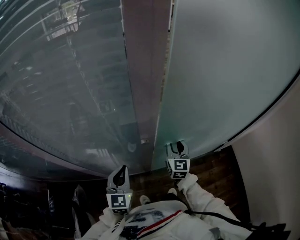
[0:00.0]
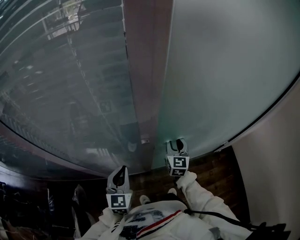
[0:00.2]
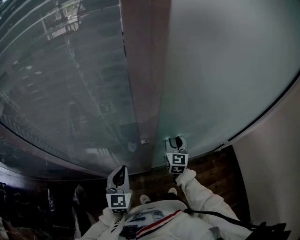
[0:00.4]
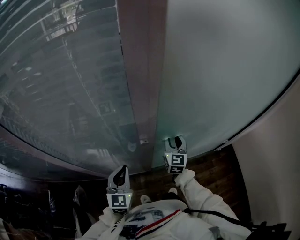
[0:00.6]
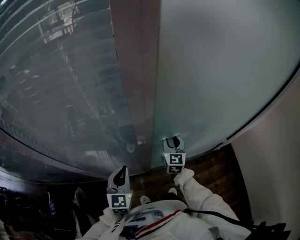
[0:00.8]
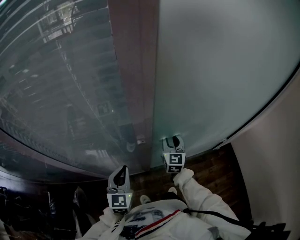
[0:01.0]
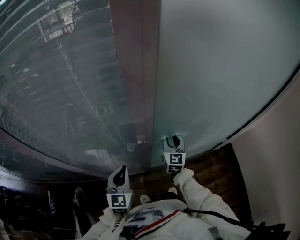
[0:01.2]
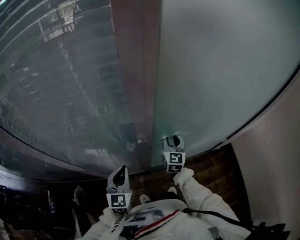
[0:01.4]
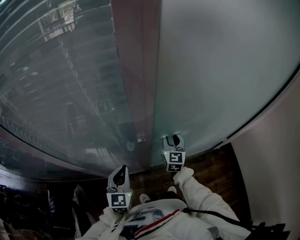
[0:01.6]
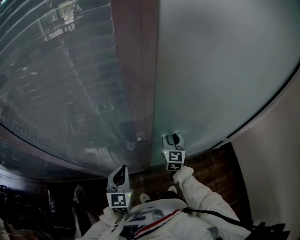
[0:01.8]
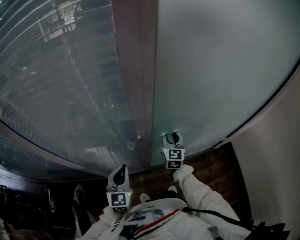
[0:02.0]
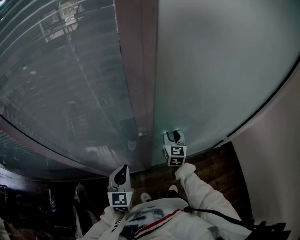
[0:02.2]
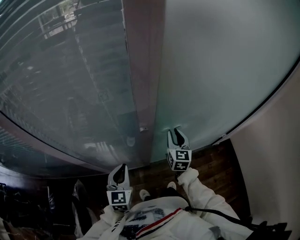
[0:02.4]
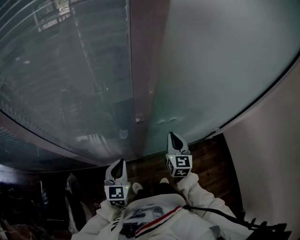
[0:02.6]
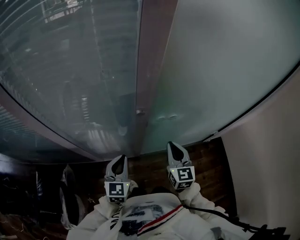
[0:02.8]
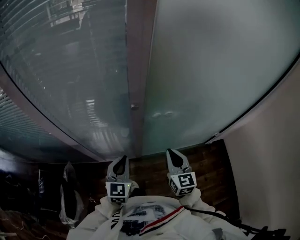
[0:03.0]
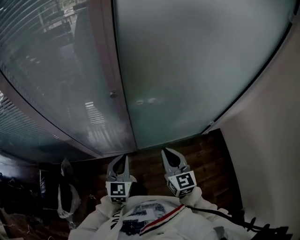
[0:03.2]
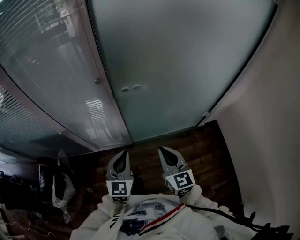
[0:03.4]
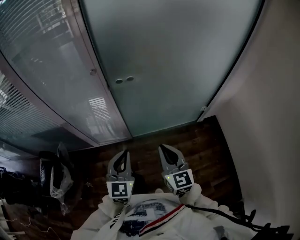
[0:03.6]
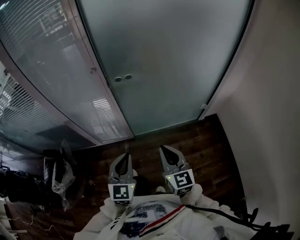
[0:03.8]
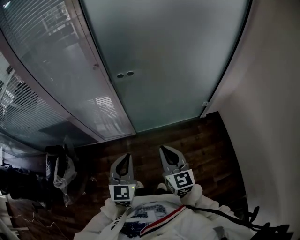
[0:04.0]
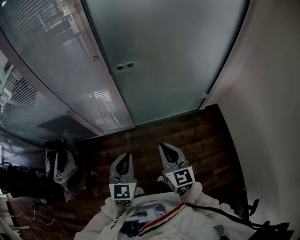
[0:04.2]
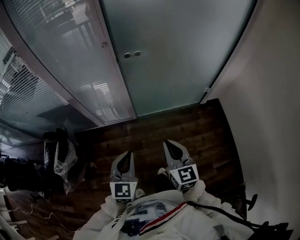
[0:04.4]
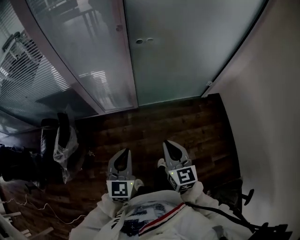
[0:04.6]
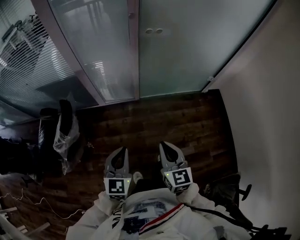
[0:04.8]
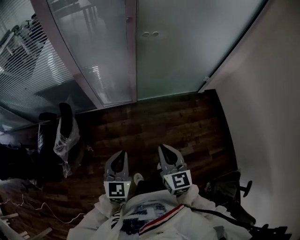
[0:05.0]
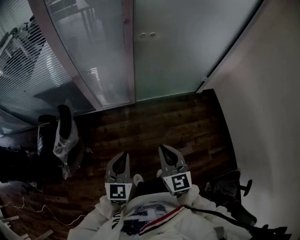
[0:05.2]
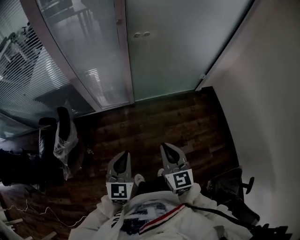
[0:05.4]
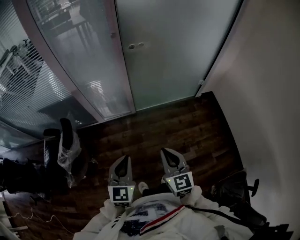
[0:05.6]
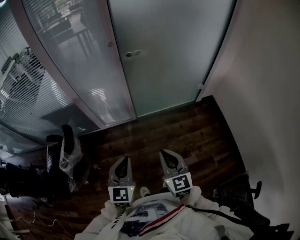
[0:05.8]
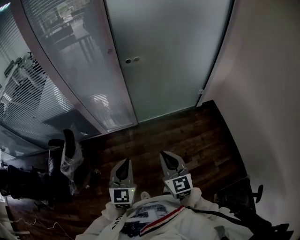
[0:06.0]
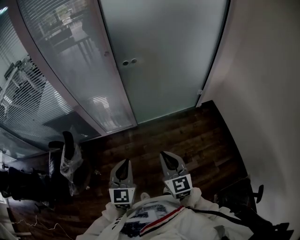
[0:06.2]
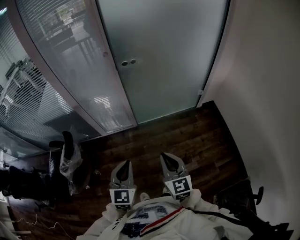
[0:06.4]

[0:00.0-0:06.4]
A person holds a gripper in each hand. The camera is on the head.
0:00.0 to 0:01.6: The grippers make only small movements.
0:01.6 to 0:03.2: The left gripper shifts some 15 cm backward and to the right. Meanwhile the right gripper shifts roughly 25 cm backward, and closes its fingers.
0:03.2 to 0:04.8: The two grippers go approximately 35 cm backward.
0:04.8 to 0:06.4: Both grippers move to the right, roughly 10 cm.

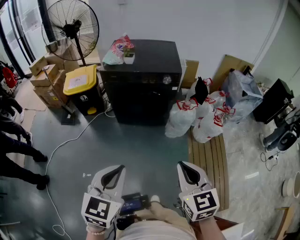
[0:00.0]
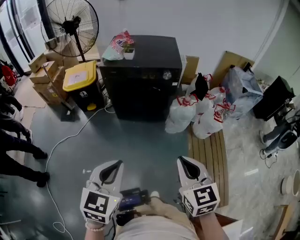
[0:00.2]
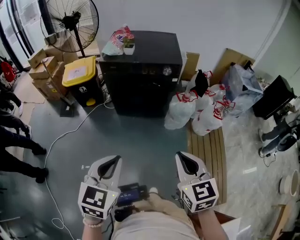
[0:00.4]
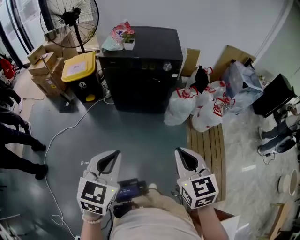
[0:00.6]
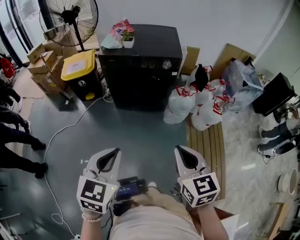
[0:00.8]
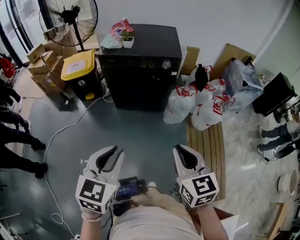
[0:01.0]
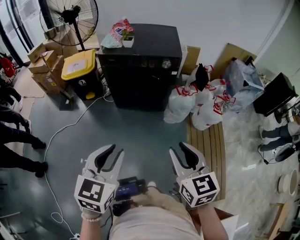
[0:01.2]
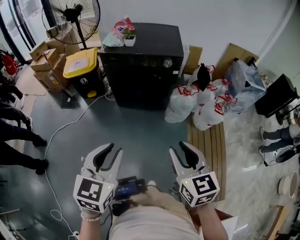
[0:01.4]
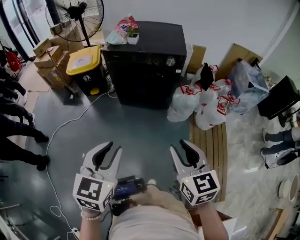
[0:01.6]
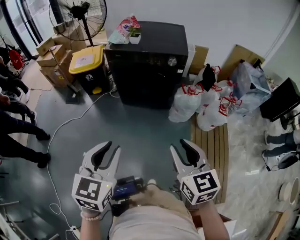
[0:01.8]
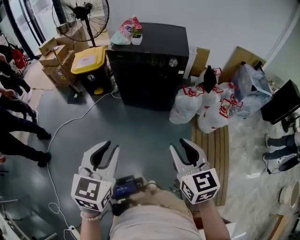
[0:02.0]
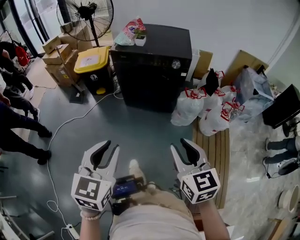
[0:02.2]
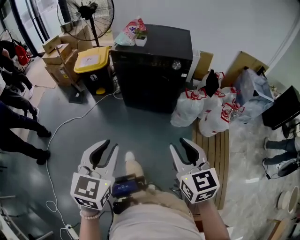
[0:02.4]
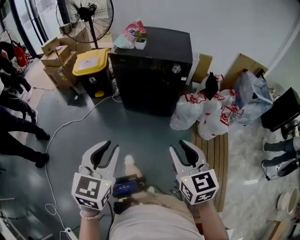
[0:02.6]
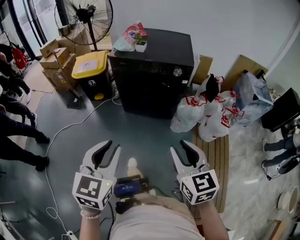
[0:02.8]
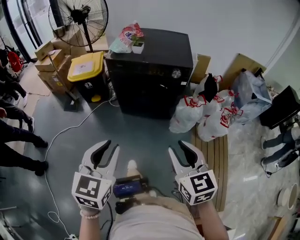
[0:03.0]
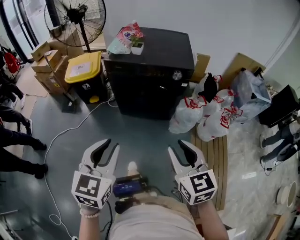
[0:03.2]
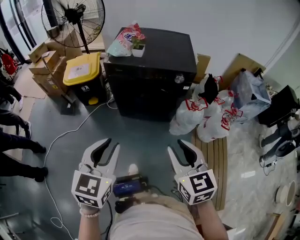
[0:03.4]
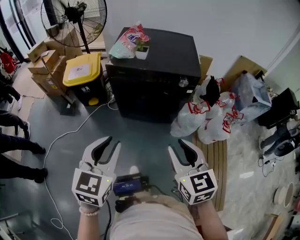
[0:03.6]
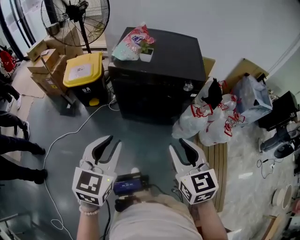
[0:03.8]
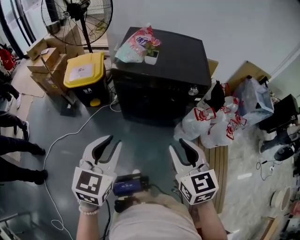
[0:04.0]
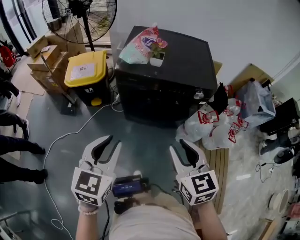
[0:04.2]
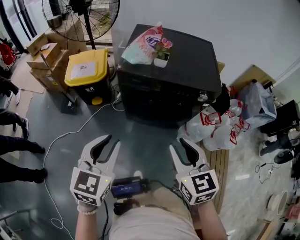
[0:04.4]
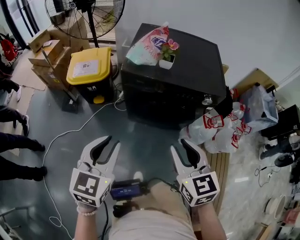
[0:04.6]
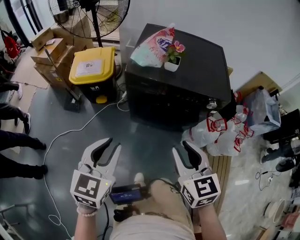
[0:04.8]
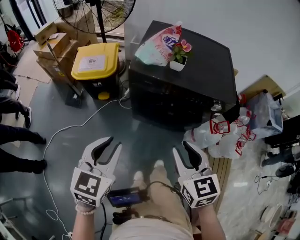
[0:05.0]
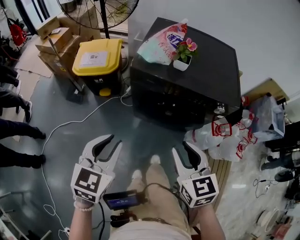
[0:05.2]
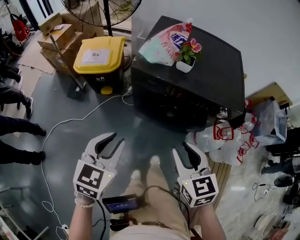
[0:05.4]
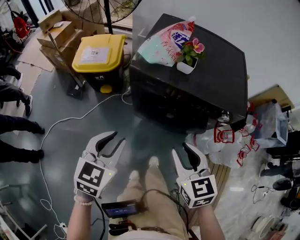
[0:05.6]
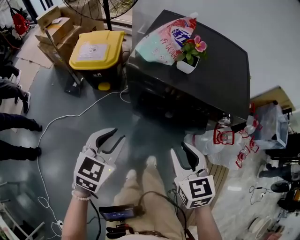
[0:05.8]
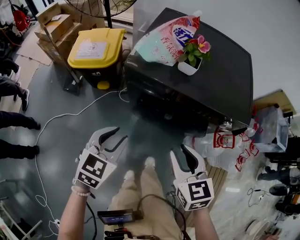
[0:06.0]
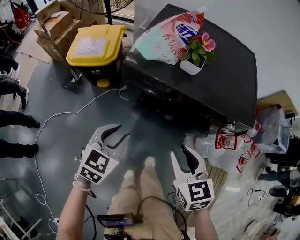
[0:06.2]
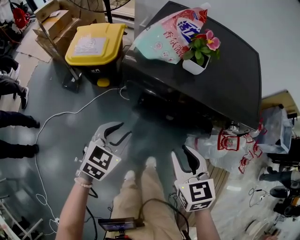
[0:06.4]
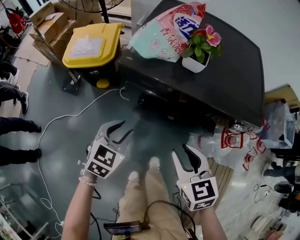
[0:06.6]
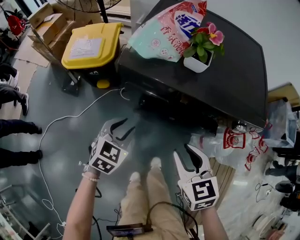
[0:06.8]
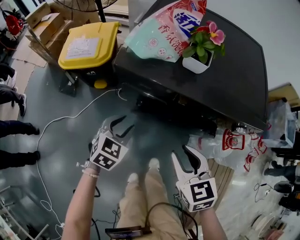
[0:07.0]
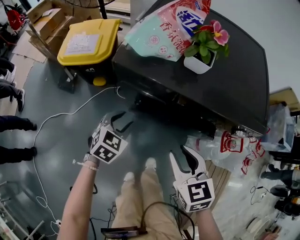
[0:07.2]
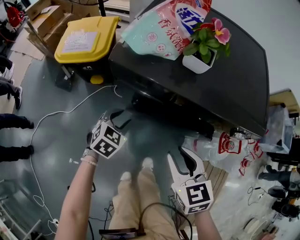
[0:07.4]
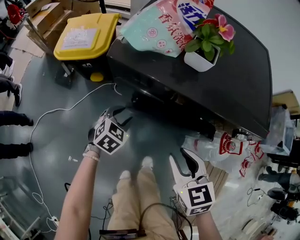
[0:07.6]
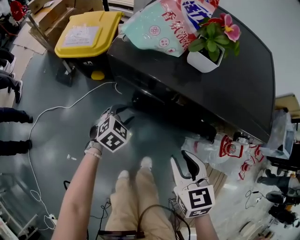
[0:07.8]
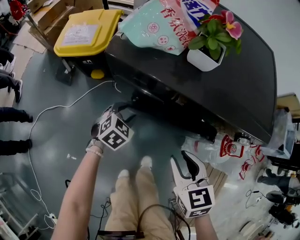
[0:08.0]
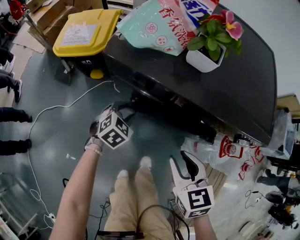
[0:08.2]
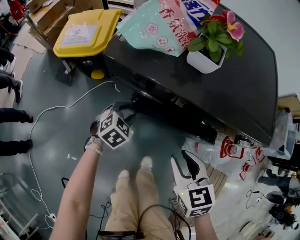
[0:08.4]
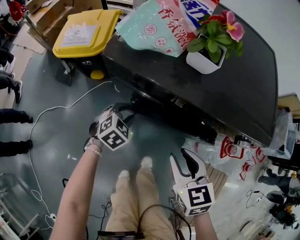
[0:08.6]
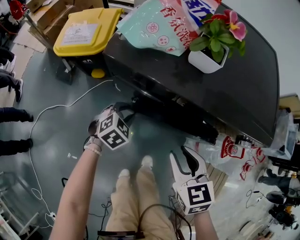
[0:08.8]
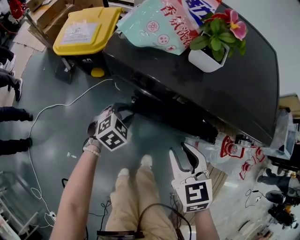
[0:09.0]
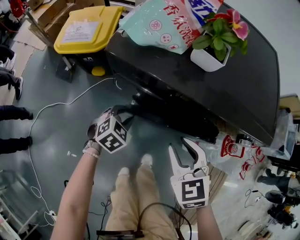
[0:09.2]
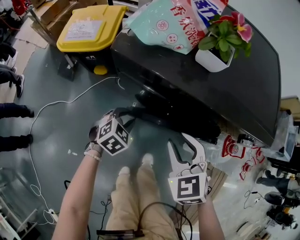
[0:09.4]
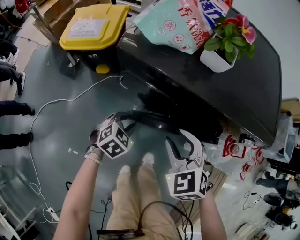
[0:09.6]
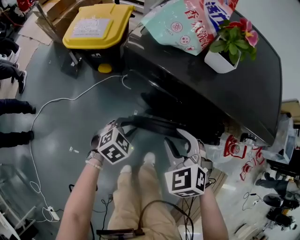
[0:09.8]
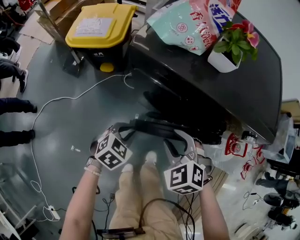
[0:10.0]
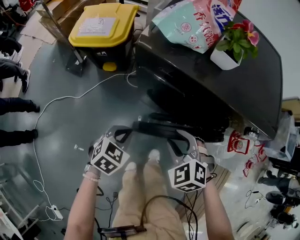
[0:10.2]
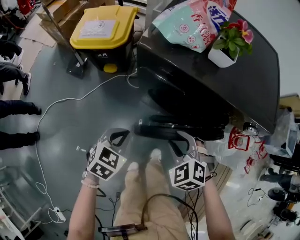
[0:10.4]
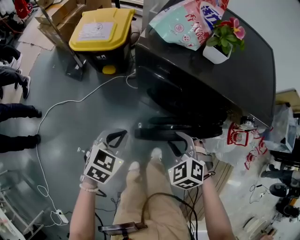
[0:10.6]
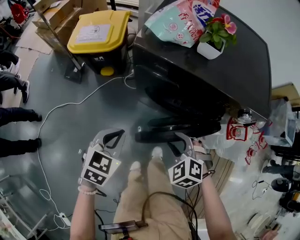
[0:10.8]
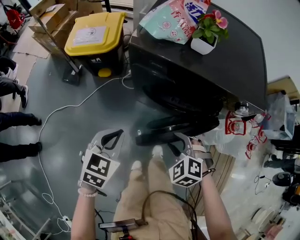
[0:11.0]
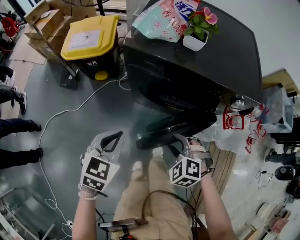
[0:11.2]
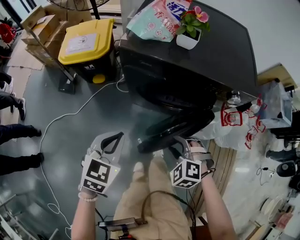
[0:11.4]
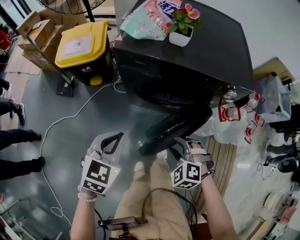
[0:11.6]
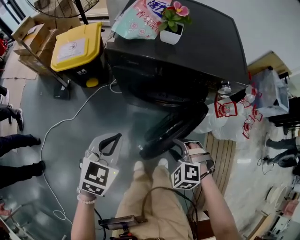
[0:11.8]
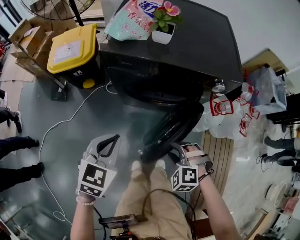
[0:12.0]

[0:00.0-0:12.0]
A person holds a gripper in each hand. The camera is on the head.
0:00.0 to 0:01.6: The right gripper opens. Meanwhile the left gripper opens.
0:01.6 to 0:03.0: Both grippers move forward, roughly 10 cm.
0:03.0 to 0:04.4: The two grippers go about 25 cm forward and to the left.
0:04.4 to 0:06.0: The left gripper shifts roughly 20 cm downward and forward. Meanwhile the right gripper heads forward and downward, covering about 20 cm.
0:06.0 to 0:07.6: The left gripper heads downward and forward, covering some 25 cm, while the right gripper is displaced downward by some 10 cm.
0:07.6 to 0:09.0: There are only small adjustments of the grippers.
0:09.0 to 0:10.4: The right gripper moves to the left, roughly 5 cm, and turns by roughly 40 degrees, while the left gripper moves backward and upward, some 15 cm, and closes.
0:10.4 to 0:12.0: The right gripper travels backward and to the right by some 15 cm. The left gripper moves upward, some 15 cm.

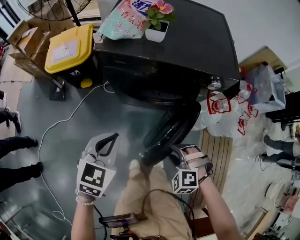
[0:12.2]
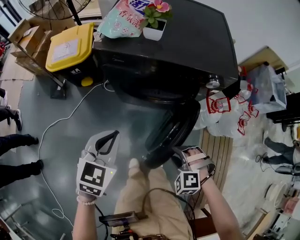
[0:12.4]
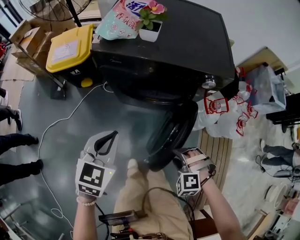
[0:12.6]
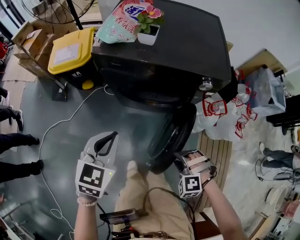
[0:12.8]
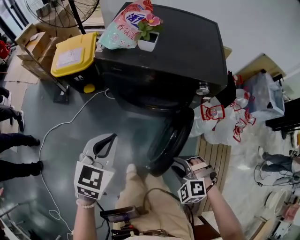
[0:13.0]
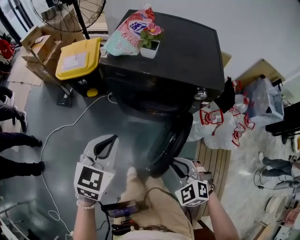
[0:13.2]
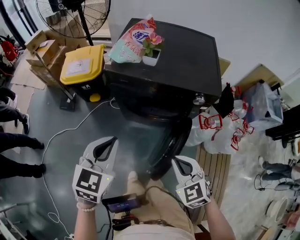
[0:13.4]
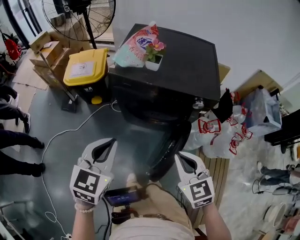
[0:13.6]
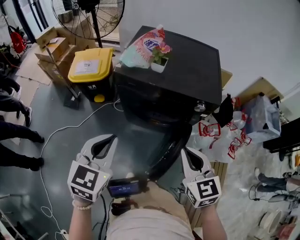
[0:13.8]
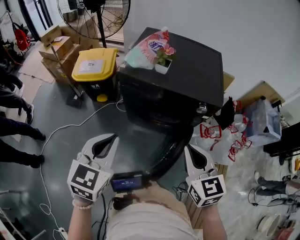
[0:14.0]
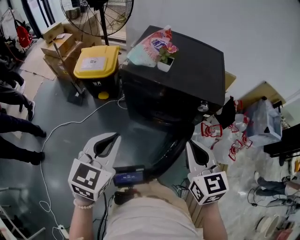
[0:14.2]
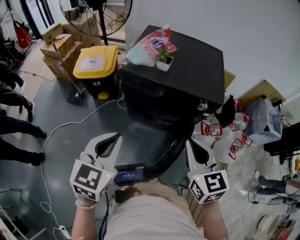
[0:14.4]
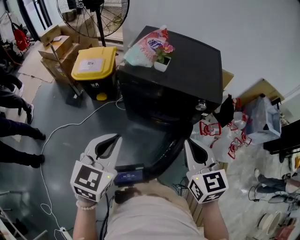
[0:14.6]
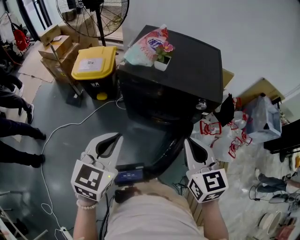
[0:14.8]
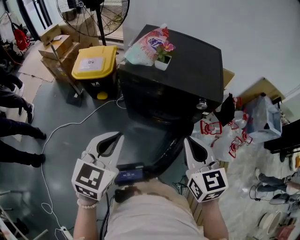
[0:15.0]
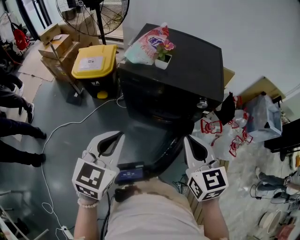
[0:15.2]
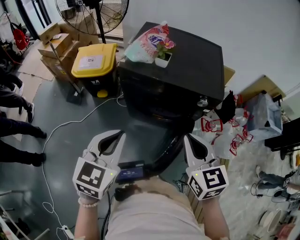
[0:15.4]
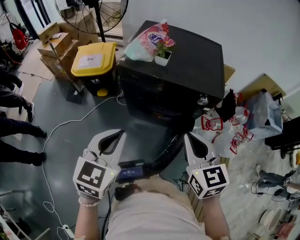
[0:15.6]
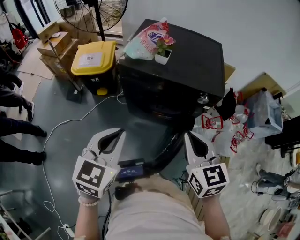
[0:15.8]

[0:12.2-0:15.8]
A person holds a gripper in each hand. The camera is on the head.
0:12.2 to 0:14.0: The right gripper moves upward, approximately 30 cm, tips its fingers upward by some 40 degrees, and closes. The left gripper goes roughly 20 cm upward.
0:14.0 to 0:15.8: The grippers make only small movements.

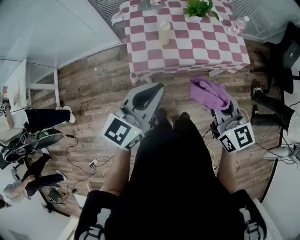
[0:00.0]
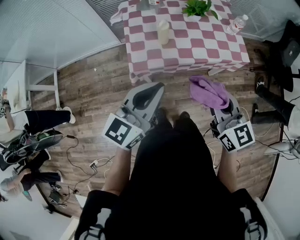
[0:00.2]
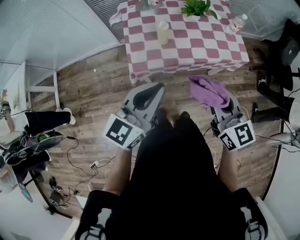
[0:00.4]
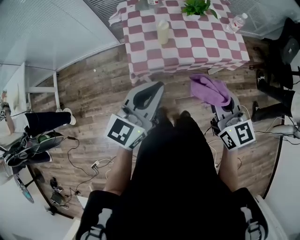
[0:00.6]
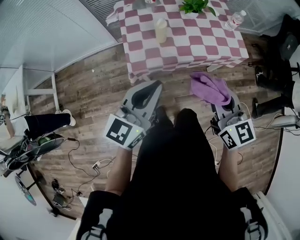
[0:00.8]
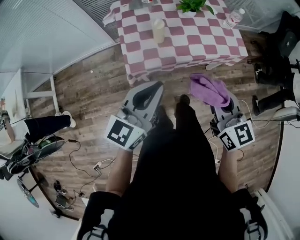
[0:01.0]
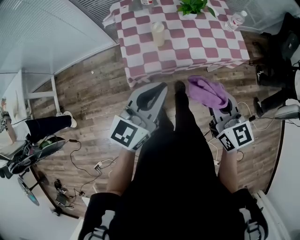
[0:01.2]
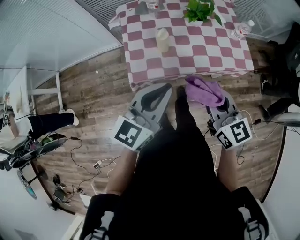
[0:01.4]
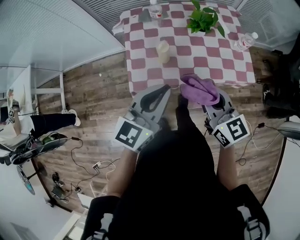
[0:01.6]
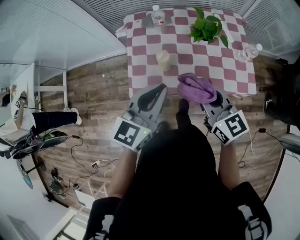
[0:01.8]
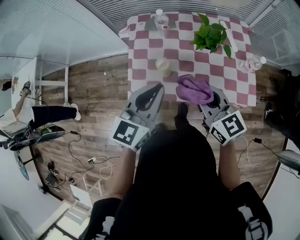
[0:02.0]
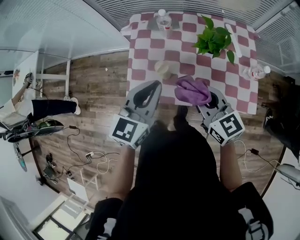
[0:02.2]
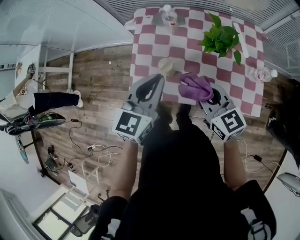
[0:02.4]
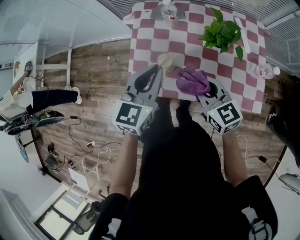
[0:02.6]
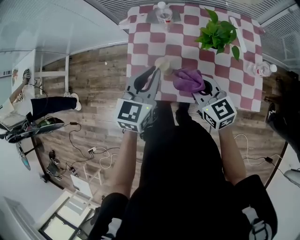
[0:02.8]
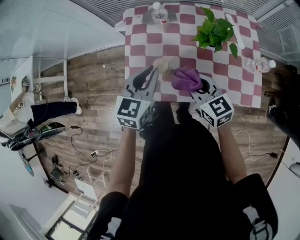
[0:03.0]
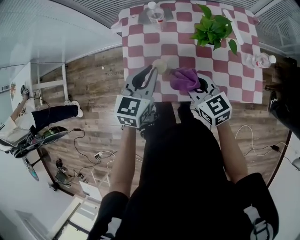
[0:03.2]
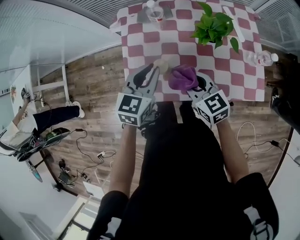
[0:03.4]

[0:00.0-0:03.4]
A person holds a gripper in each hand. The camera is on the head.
0:00.0 to 0:01.6: Both grippers travel together forward, about 15 cm.
0:01.6 to 0:03.4: Both grippers travel together forward and downward, roughly 25 cm. The left gripper rotates some 20 degrees.
